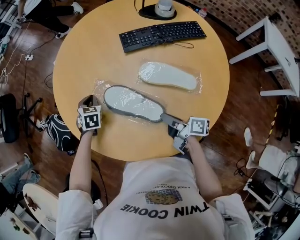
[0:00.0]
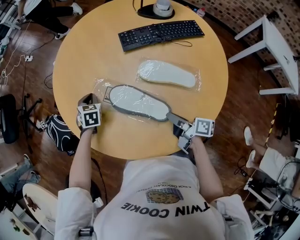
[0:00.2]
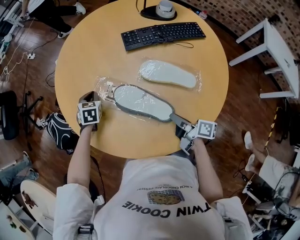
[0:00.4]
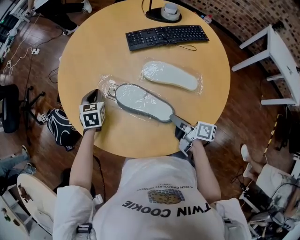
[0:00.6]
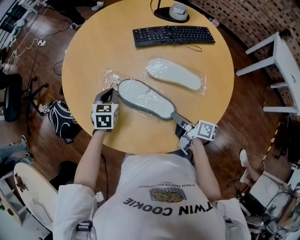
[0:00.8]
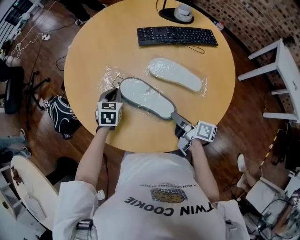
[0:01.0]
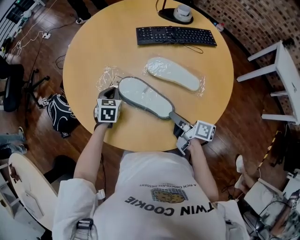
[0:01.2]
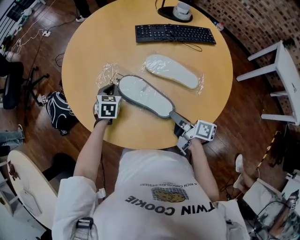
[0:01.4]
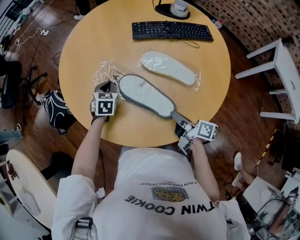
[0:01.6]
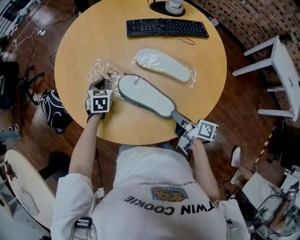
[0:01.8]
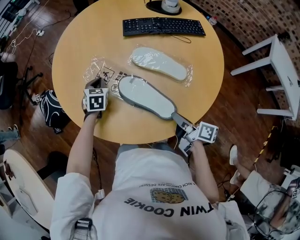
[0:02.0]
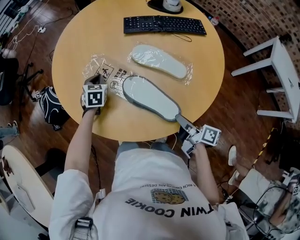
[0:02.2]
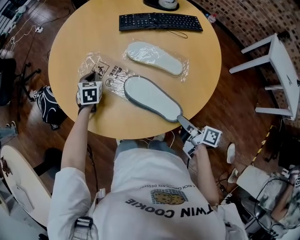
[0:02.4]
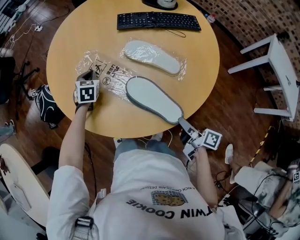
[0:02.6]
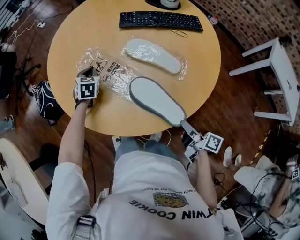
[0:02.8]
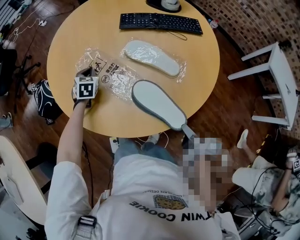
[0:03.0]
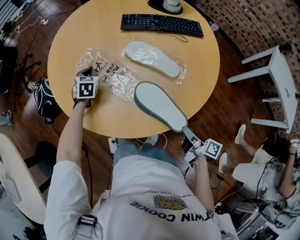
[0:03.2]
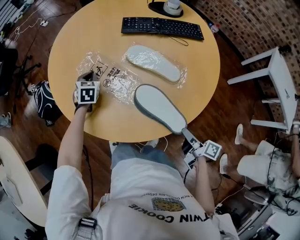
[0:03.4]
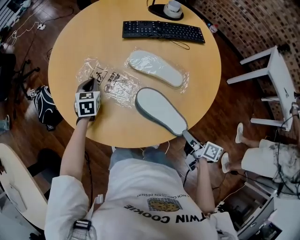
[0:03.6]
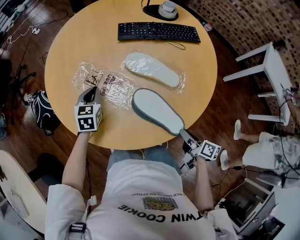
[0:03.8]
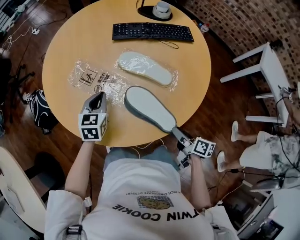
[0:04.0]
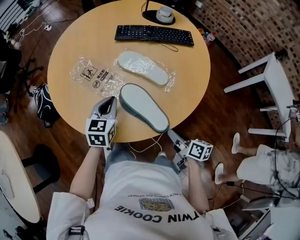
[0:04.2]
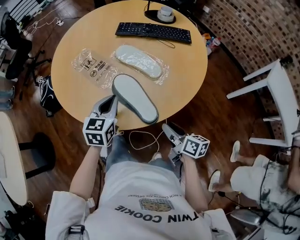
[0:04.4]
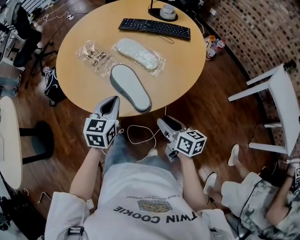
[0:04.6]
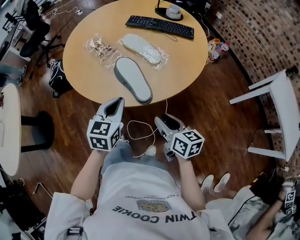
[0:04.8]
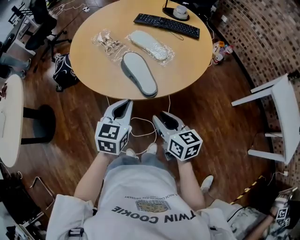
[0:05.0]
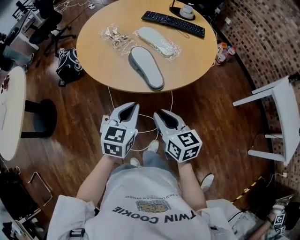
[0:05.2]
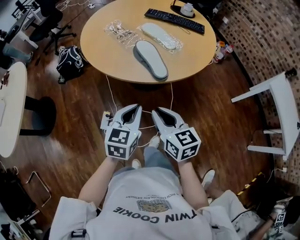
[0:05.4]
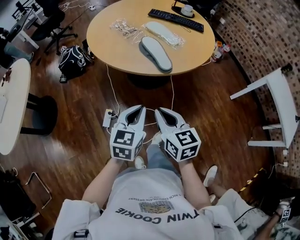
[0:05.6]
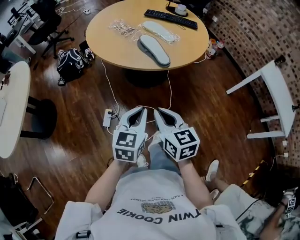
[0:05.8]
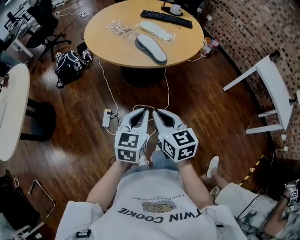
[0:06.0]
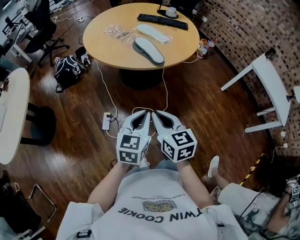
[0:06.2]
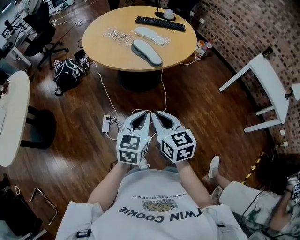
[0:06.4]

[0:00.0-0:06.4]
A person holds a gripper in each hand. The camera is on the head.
0:00.0 to 0:01.6: The grippers both shift backward and to the right by roughly 10 cm.
0:01.6 to 0:03.2: The right gripper heads backward and to the right, covering roughly 20 cm.
0:03.2 to 0:04.8: The right gripper moves upward and backward, about 10 cm, and rotates around the line of its fingers by some 40 degrees, counterclockwise from behind. The left gripper moves backward and to the right, some 40 cm, and changes its angle by some 30 degrees.
0:04.8 to 0:06.4: The right gripper heads backward and to the left, covering about 35 cm, rotates roughly 20 degrees, and closes. The left gripper heads backward, covering approximately 35 cm.

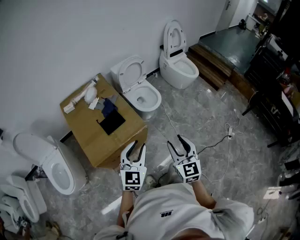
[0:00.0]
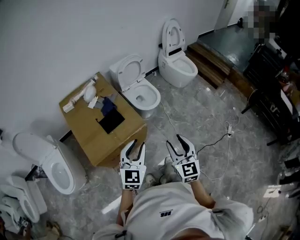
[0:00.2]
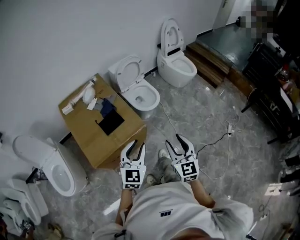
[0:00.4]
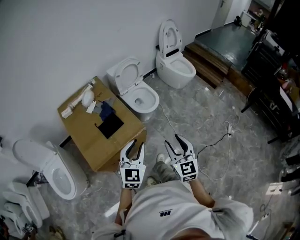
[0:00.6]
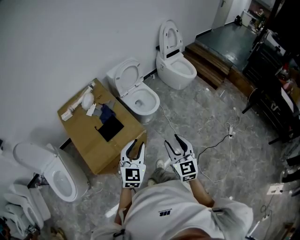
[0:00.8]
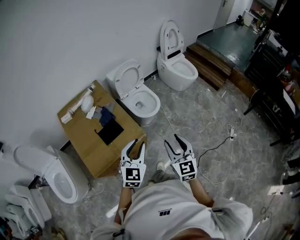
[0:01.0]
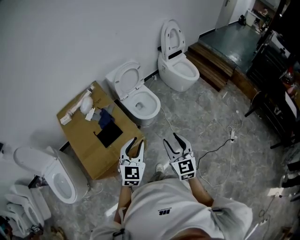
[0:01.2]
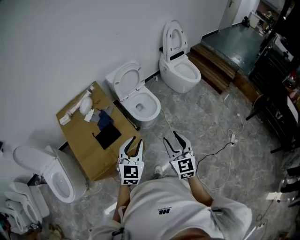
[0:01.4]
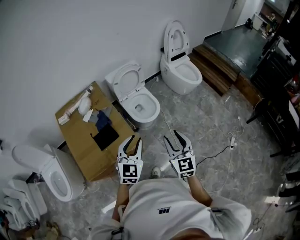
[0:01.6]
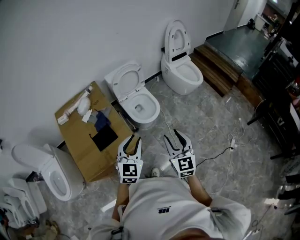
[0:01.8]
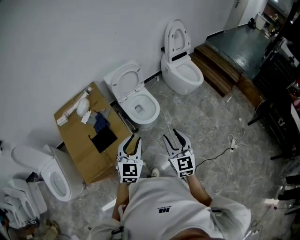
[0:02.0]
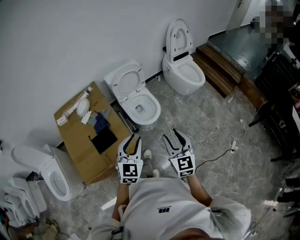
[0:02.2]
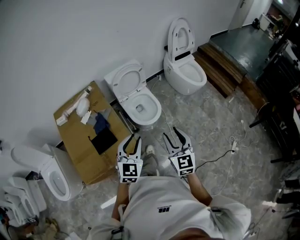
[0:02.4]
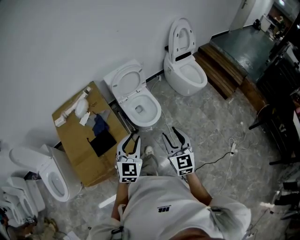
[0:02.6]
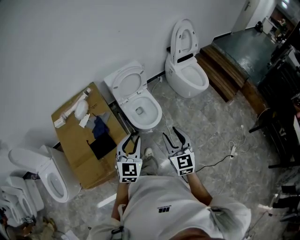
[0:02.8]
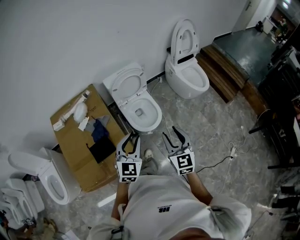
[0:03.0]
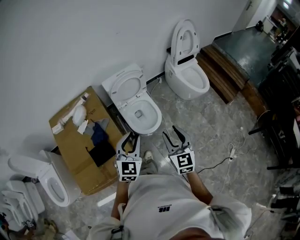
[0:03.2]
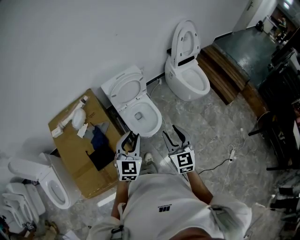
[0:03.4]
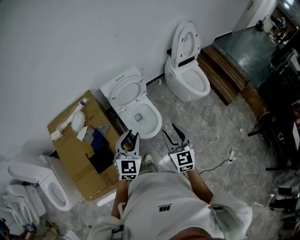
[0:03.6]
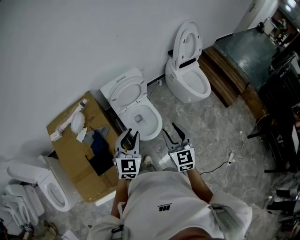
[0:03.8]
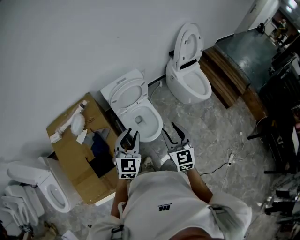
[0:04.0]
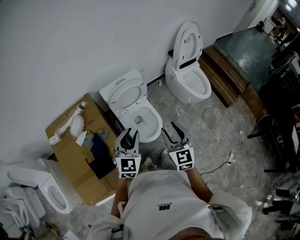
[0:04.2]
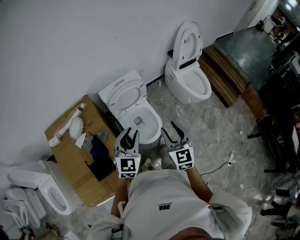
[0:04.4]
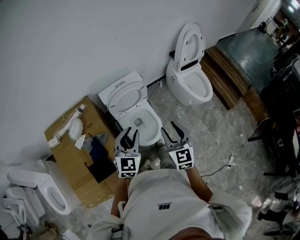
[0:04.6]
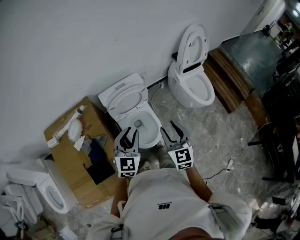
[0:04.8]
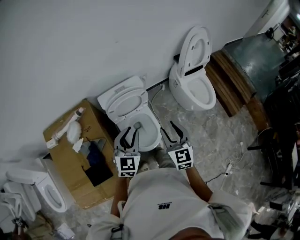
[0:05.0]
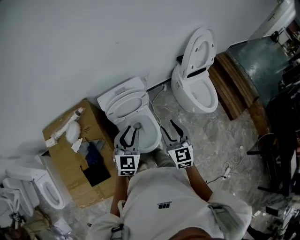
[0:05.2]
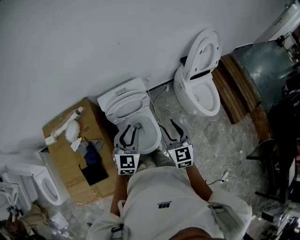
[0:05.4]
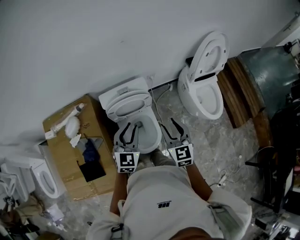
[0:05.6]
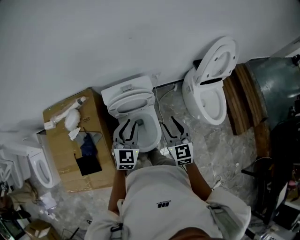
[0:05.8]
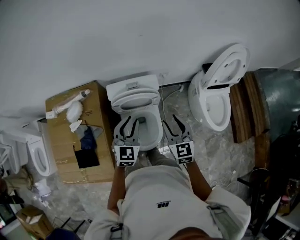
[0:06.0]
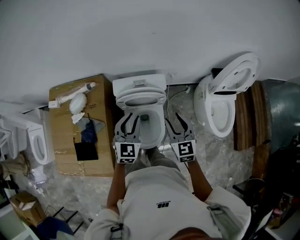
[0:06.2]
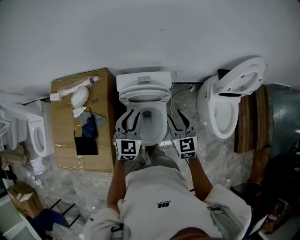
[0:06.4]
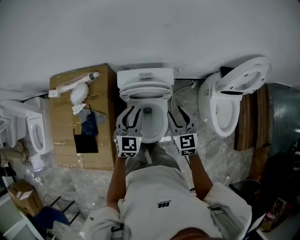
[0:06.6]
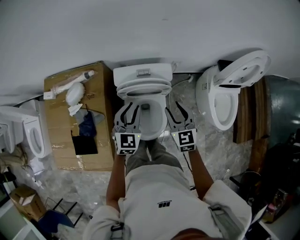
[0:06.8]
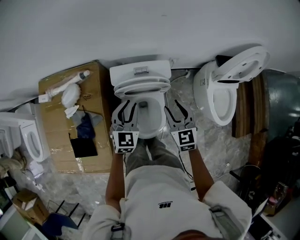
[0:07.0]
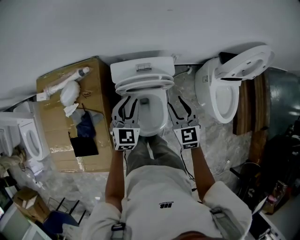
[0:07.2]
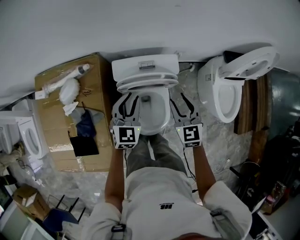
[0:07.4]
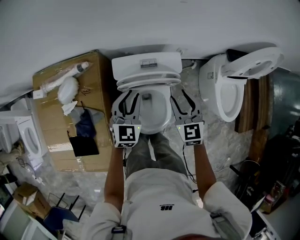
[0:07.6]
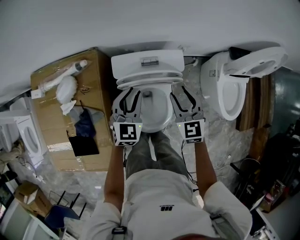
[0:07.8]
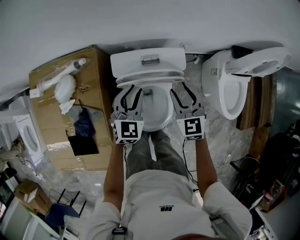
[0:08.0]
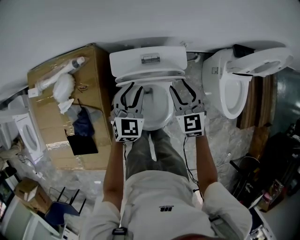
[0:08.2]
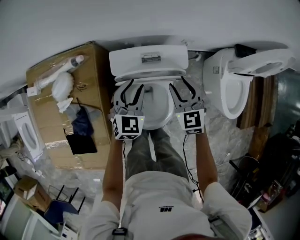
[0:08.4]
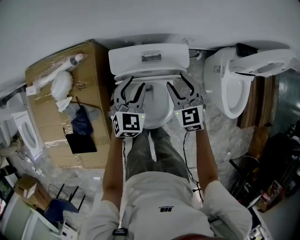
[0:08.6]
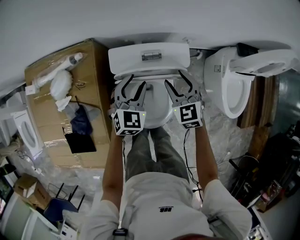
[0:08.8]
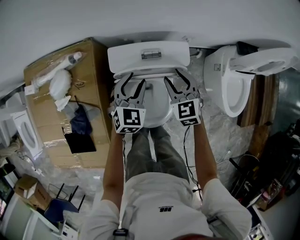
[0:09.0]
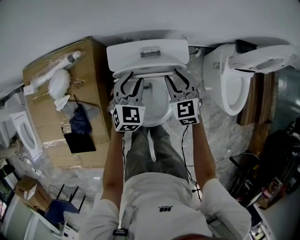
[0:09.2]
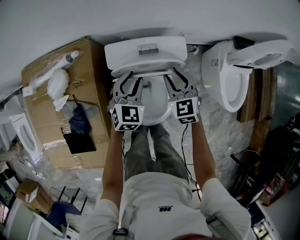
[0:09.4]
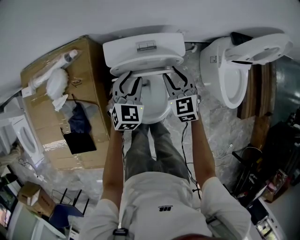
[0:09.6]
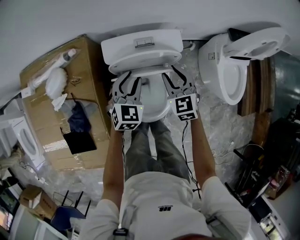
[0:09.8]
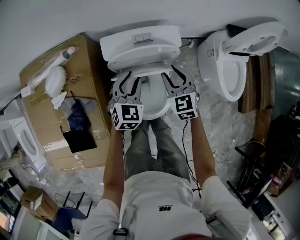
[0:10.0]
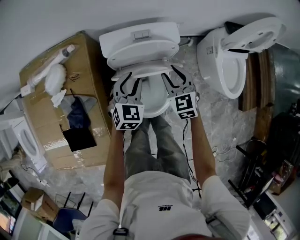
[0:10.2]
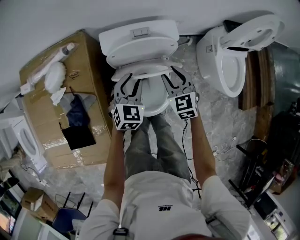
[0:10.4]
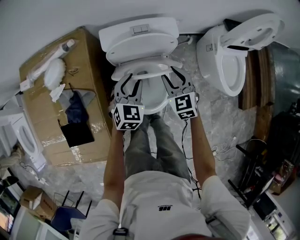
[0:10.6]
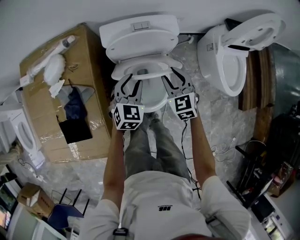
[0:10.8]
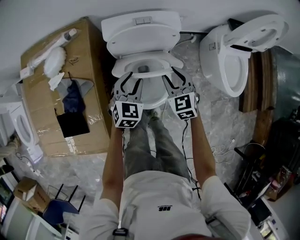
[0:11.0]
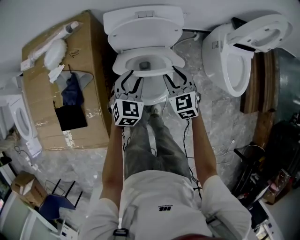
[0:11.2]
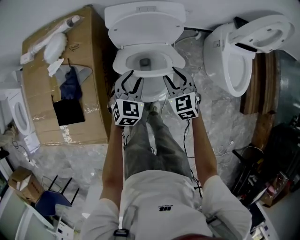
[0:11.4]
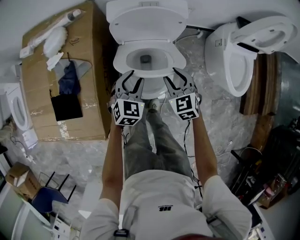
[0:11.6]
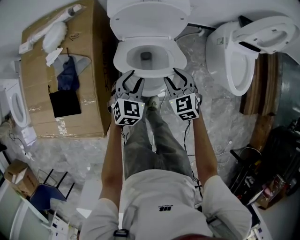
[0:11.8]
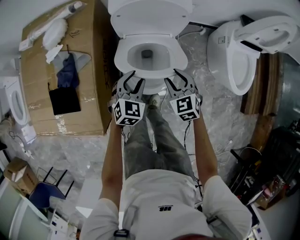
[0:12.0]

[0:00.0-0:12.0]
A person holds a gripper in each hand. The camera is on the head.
0:00.0 to 0:01.6: The two grippers go roughly 20 cm forward.
0:01.6 to 0:03.0: Both grippers travel together forward, approximately 20 cm.
0:03.0 to 0:04.4: The two grippers go some 20 cm forward.
0:04.4 to 0:06.0: The grippers both shift forward by some 25 cm. The left gripper swivels some 20 degrees. The right gripper rotates about 20 degrees.
0:06.0 to 0:07.6: The two grippers go about 20 cm downward, forward and to the left.
0:07.6 to 0:09.0: The left gripper goes some 10 cm downward, while the right gripper heads downward and forward, covering some 10 cm.
0:09.0 to 0:10.4: The grippers both shift backward by roughly 10 cm.
0:10.4 to 0:12.0: Both grippers move backward and downward, some 15 cm.

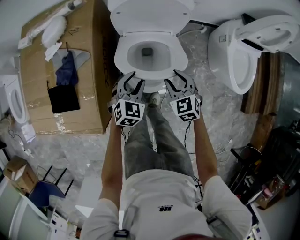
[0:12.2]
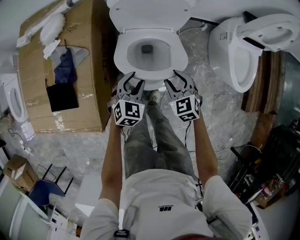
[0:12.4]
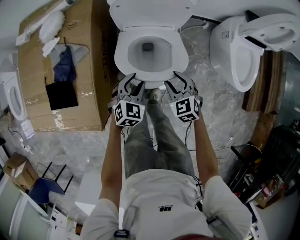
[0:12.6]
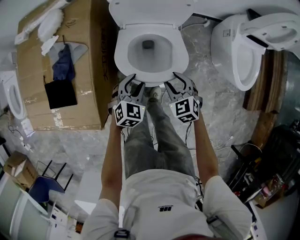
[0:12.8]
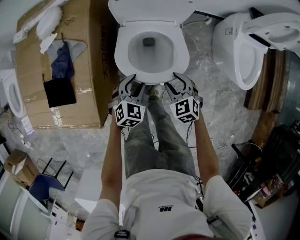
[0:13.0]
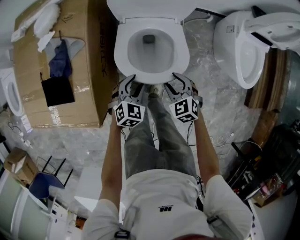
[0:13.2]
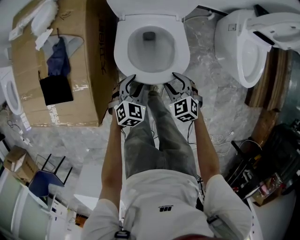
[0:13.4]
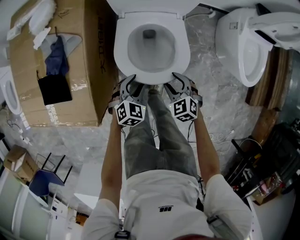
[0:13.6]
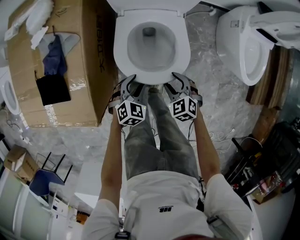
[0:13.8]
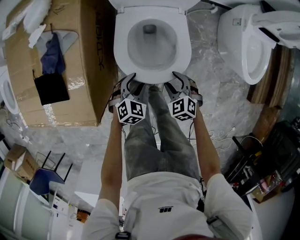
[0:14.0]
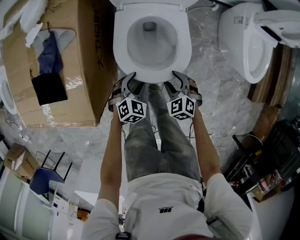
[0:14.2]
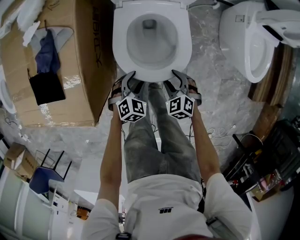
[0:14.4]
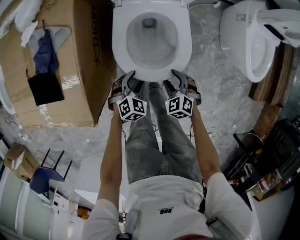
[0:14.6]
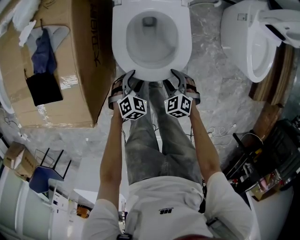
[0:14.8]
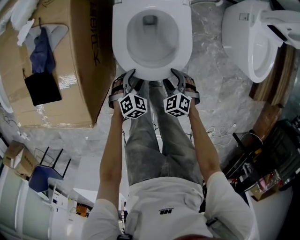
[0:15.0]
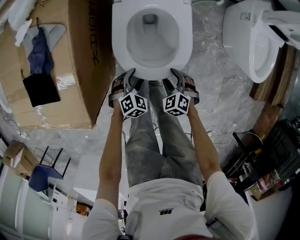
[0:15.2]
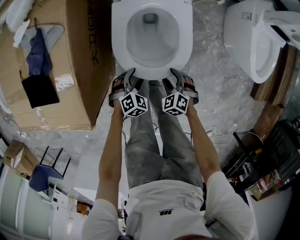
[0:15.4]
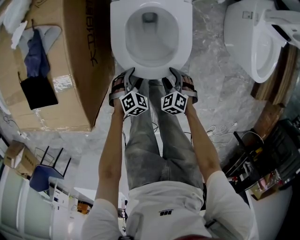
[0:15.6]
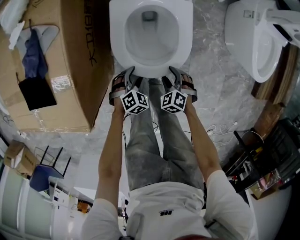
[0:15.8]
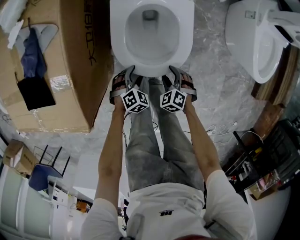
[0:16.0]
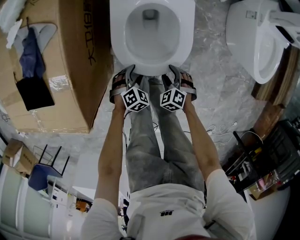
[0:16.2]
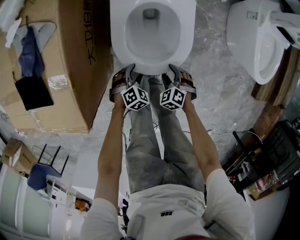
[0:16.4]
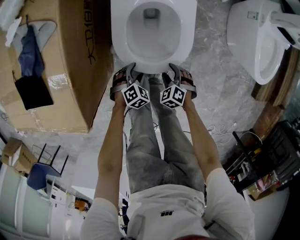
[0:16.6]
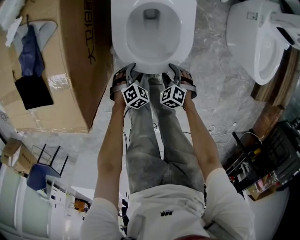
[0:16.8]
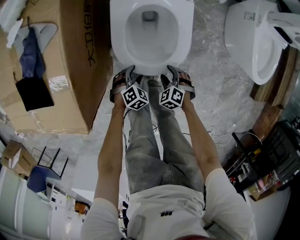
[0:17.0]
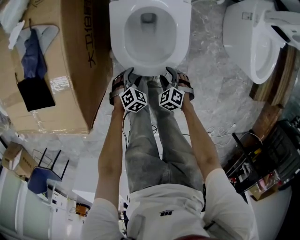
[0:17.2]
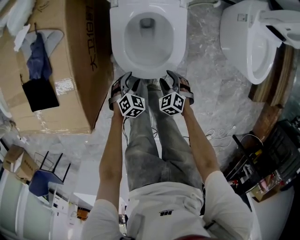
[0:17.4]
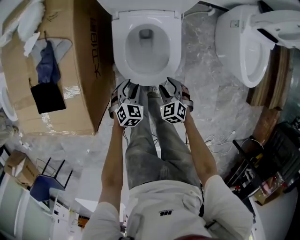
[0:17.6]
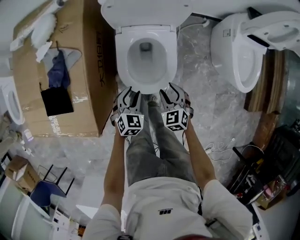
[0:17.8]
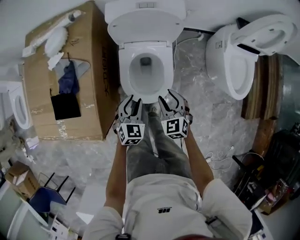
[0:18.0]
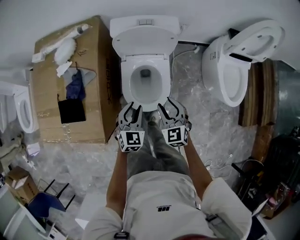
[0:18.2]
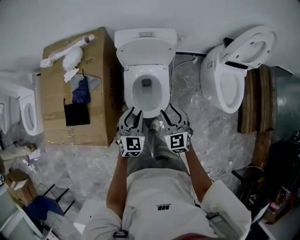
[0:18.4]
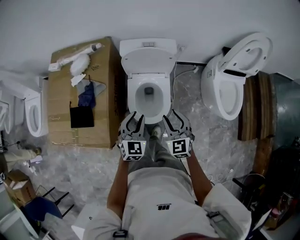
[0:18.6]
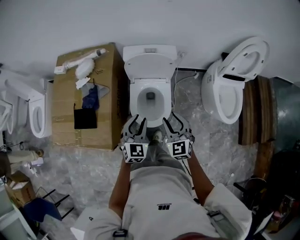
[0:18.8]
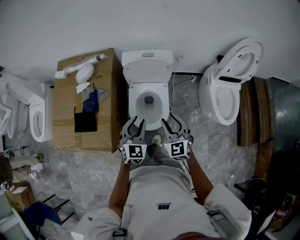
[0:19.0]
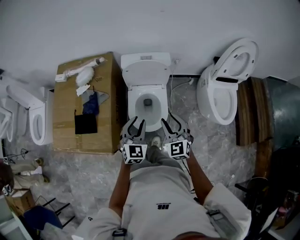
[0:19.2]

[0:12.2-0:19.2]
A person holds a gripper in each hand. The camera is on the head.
0:12.2 to 0:13.6: Both grippers travel together downward and backward, approximately 15 cm.
0:13.6 to 0:15.0: Both grippers move downward, approximately 10 cm.
0:15.0 to 0:16.4: The grippers both shift downward by approximately 10 cm.
0:16.4 to 0:17.8: The grippers both shift upward by approximately 20 cm. The left gripper turns by roughly 30 degrees, and closes its fingers. The right gripper swivels approximately 30 degrees.
0:17.8 to 0:19.2: The grippers both shift upward by roughly 35 cm. The right gripper changes its angle by some 30 degrees; the left gripper changes its angle by approximately 30 degrees.
